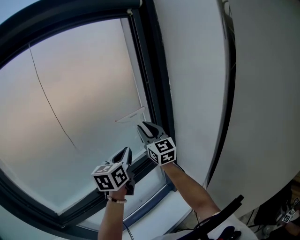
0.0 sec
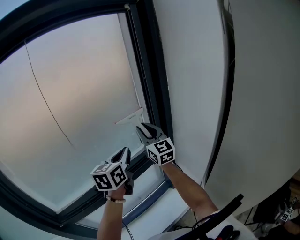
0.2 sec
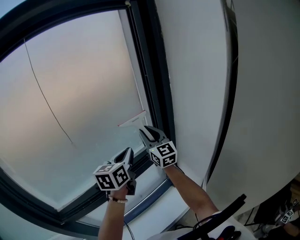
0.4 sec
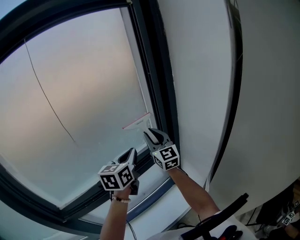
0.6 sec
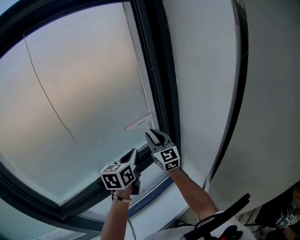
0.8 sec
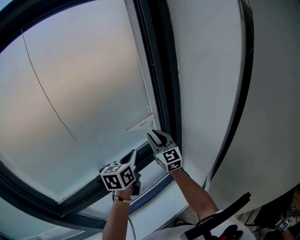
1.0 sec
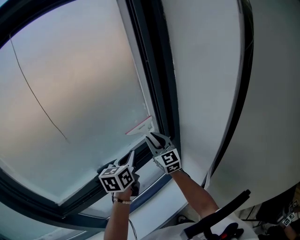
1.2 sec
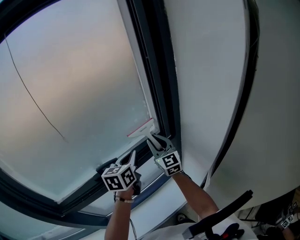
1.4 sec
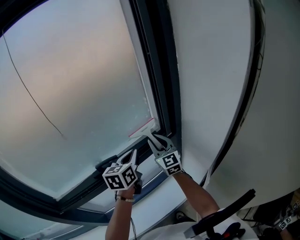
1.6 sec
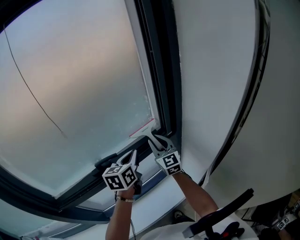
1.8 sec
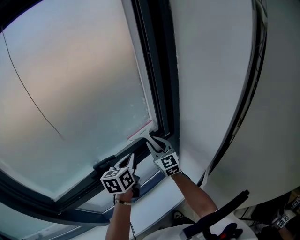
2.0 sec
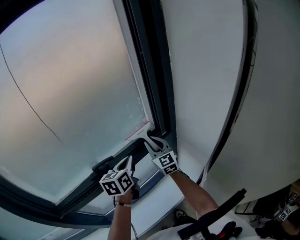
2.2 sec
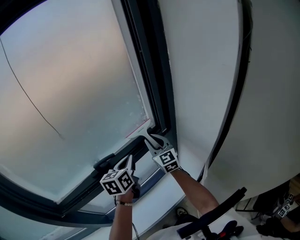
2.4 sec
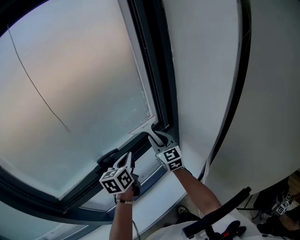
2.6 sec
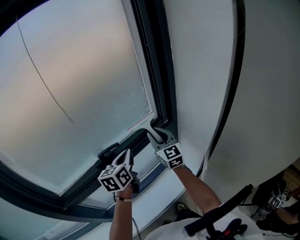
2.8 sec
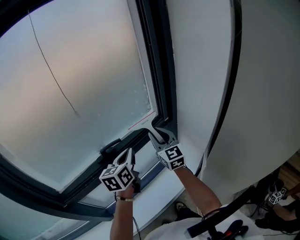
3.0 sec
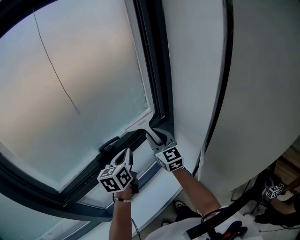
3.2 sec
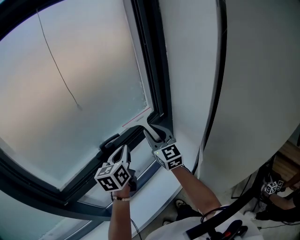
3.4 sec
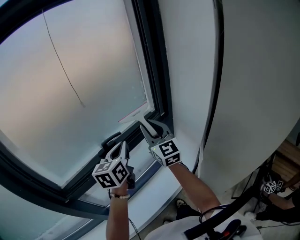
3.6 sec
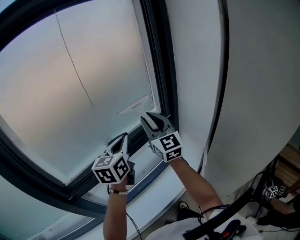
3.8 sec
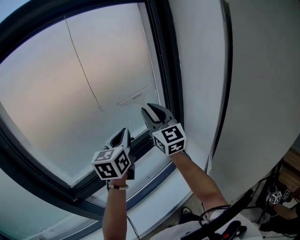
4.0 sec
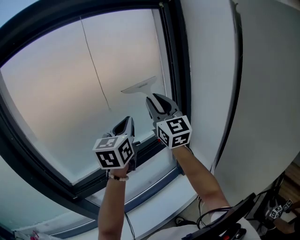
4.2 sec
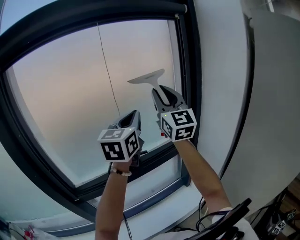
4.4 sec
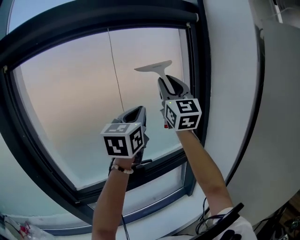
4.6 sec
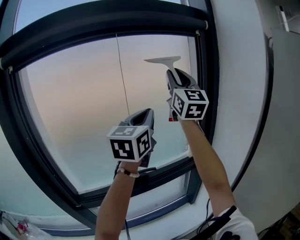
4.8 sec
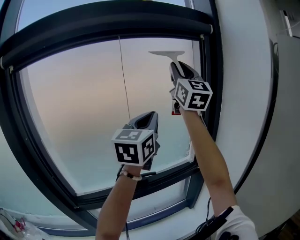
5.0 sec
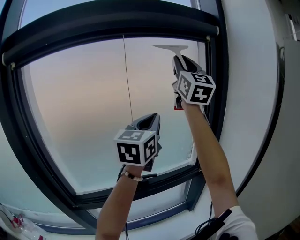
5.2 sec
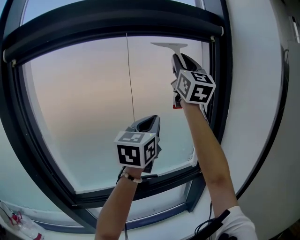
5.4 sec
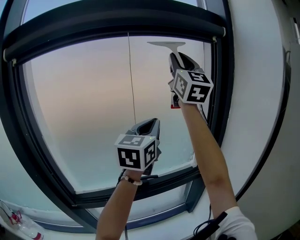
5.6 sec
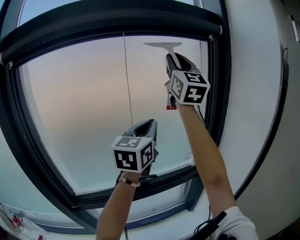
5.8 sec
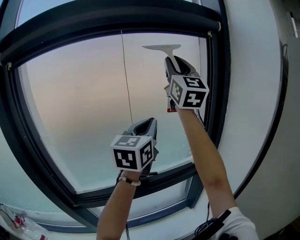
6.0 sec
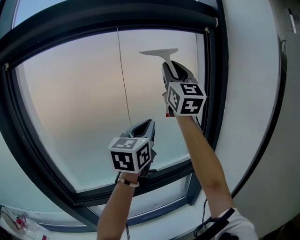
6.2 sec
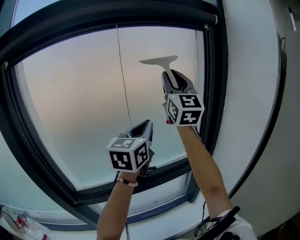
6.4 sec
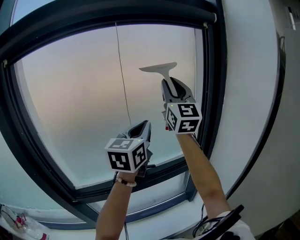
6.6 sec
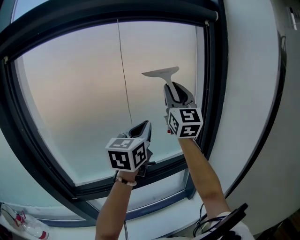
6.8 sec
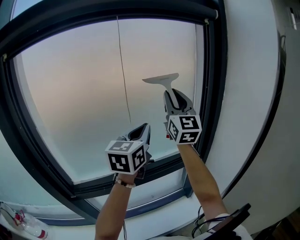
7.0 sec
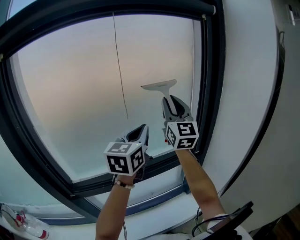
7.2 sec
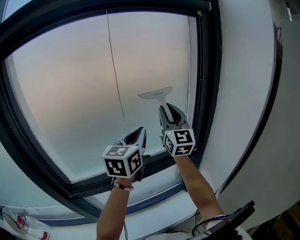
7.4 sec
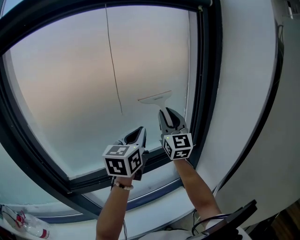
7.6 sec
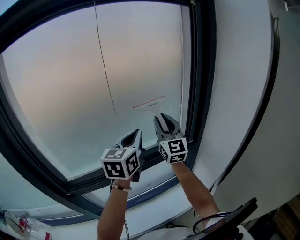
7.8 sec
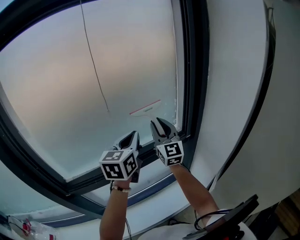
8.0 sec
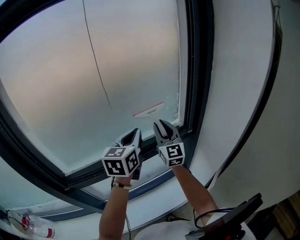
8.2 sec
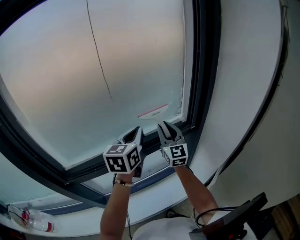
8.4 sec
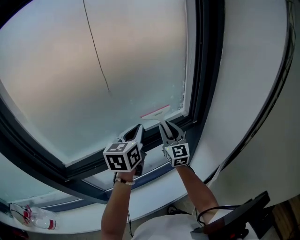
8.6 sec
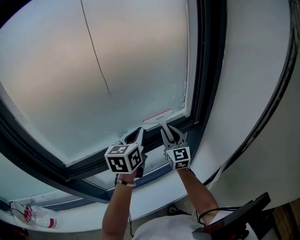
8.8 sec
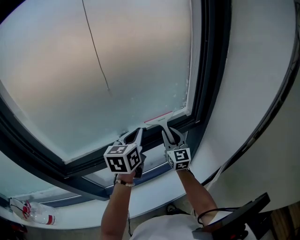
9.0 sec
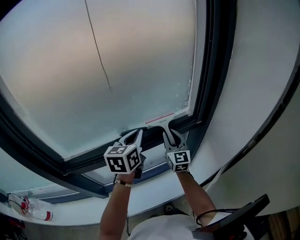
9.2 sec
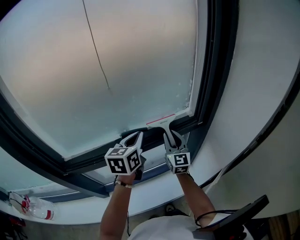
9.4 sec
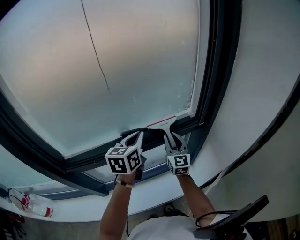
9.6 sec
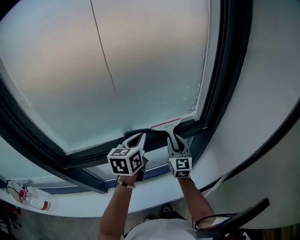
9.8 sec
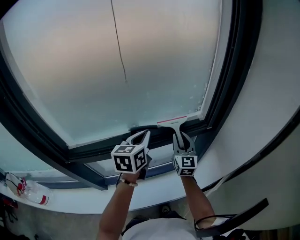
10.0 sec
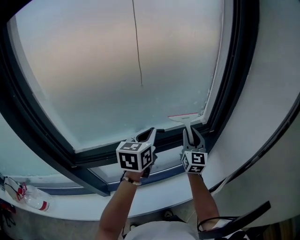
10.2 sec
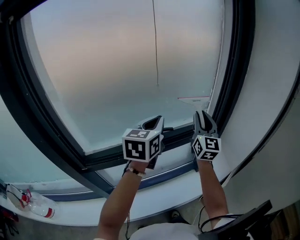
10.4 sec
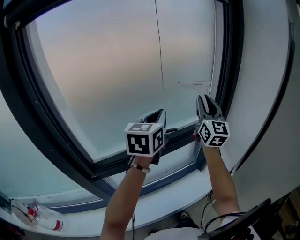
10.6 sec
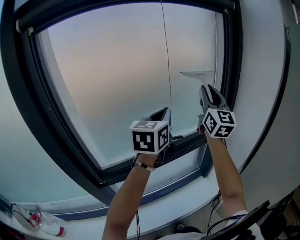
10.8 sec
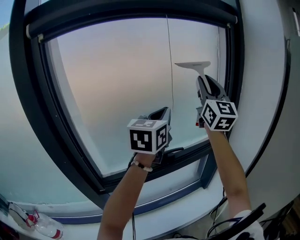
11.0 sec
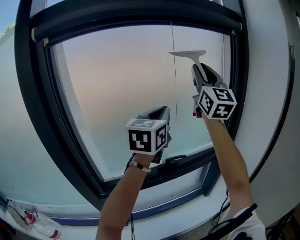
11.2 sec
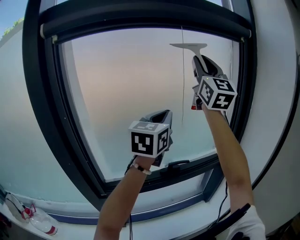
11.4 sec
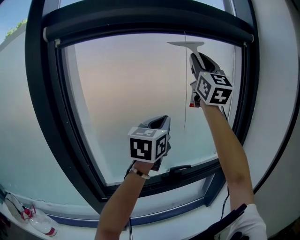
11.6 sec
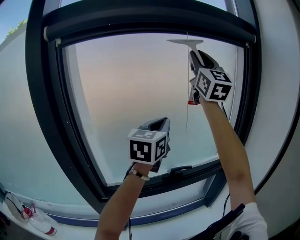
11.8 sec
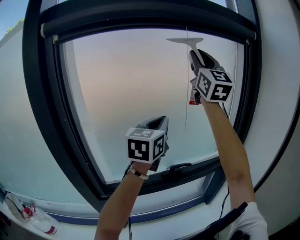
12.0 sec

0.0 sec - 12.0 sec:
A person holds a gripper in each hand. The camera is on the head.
0.0 sec - 1.6 sec: Both grippers travel together downward, some 15 cm.
1.6 sec - 3.0 sec: The left gripper travels backward and to the left by some 10 cm, while the right gripper heads backward, covering about 10 cm.
3.0 sec - 4.4 sec: Both grippers move upward, about 30 cm. The right gripper rotates roughly 20 degrees. The left gripper changes its angle by some 30 degrees.
4.4 sec - 6.0 sec: The right gripper heads upward and forward, covering roughly 20 cm. The left gripper shifts roughly 5 cm forward.
6.0 sec - 7.6 sec: The left gripper shifts about 15 cm downward. The right gripper shifts about 30 cm downward.
7.6 sec - 9.0 sec: The right gripper travels downward by some 25 cm. Meanwhile the left gripper is displaced downward by some 15 cm.
9.0 sec - 10.4 sec: The left gripper moves upward, some 10 cm; the right gripper travels upward by roughly 15 cm.
10.4 sec - 12.0 sec: The left gripper heads upward and to the left, covering some 20 cm, while the right gripper moves upward, some 40 cm, and changes its angle by approximately 30 degrees.

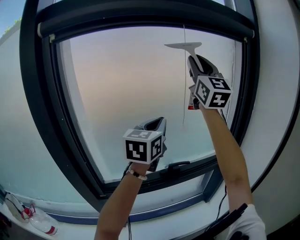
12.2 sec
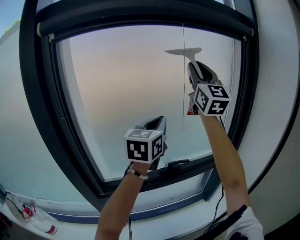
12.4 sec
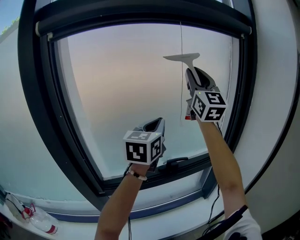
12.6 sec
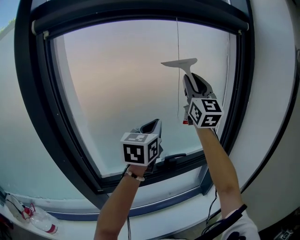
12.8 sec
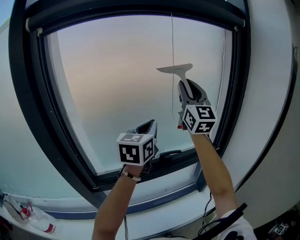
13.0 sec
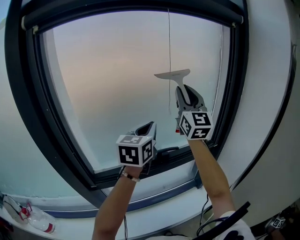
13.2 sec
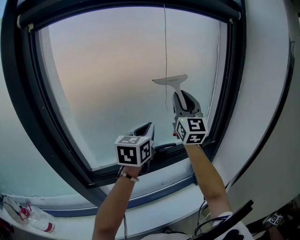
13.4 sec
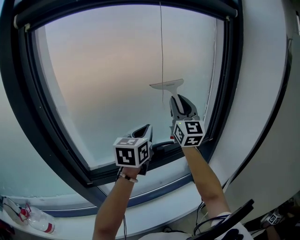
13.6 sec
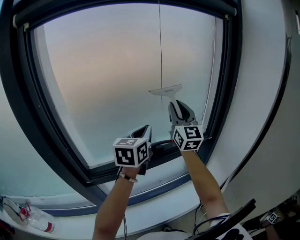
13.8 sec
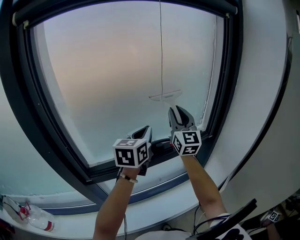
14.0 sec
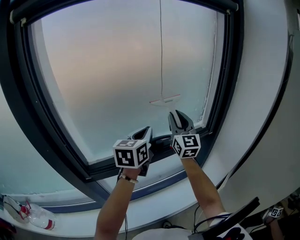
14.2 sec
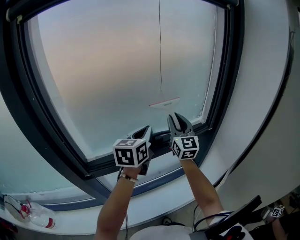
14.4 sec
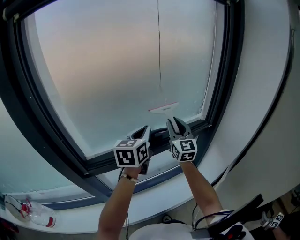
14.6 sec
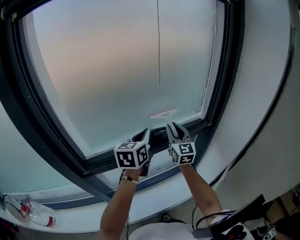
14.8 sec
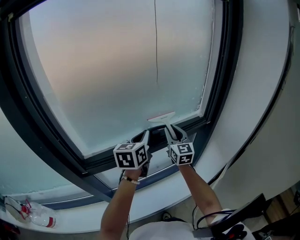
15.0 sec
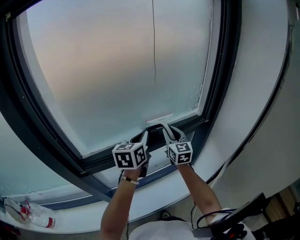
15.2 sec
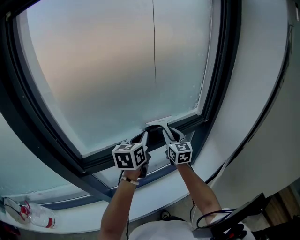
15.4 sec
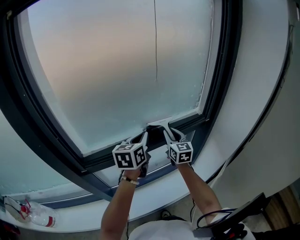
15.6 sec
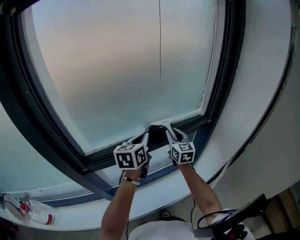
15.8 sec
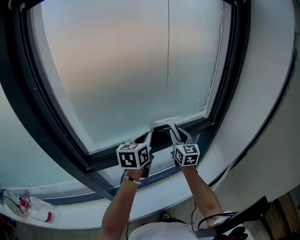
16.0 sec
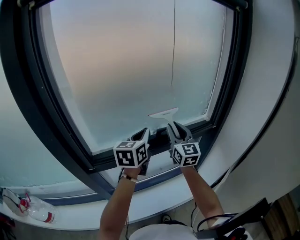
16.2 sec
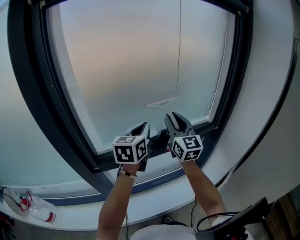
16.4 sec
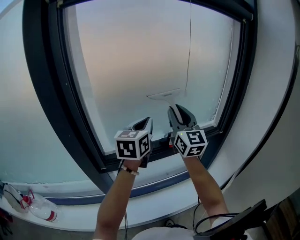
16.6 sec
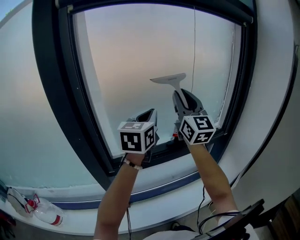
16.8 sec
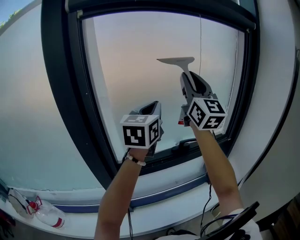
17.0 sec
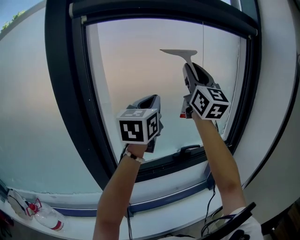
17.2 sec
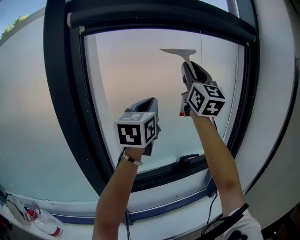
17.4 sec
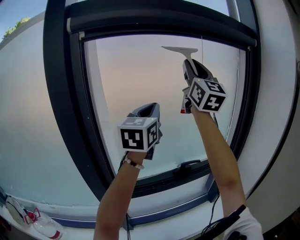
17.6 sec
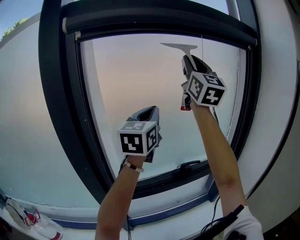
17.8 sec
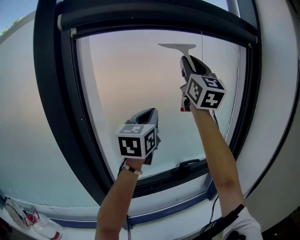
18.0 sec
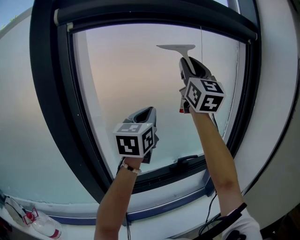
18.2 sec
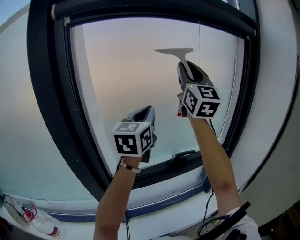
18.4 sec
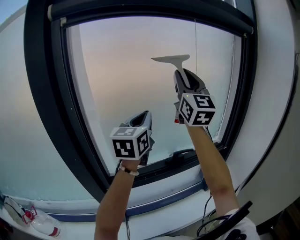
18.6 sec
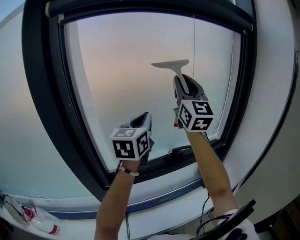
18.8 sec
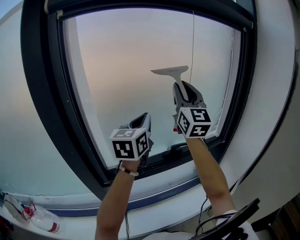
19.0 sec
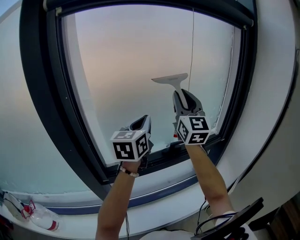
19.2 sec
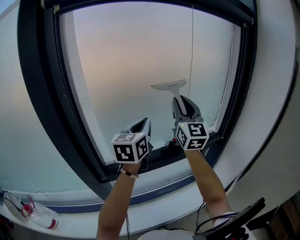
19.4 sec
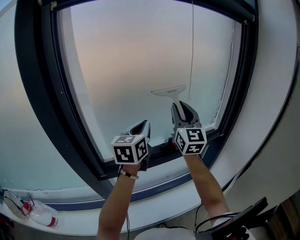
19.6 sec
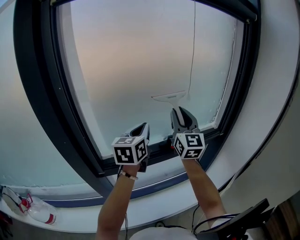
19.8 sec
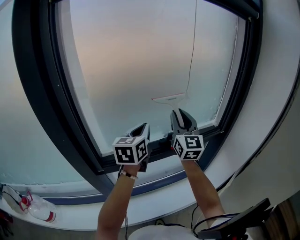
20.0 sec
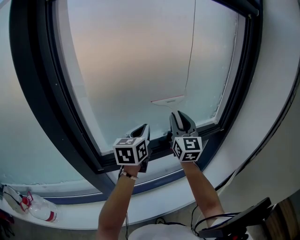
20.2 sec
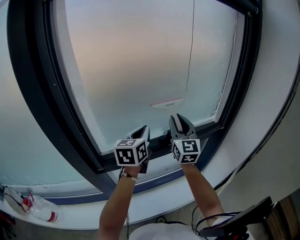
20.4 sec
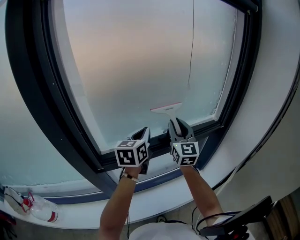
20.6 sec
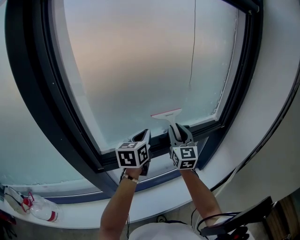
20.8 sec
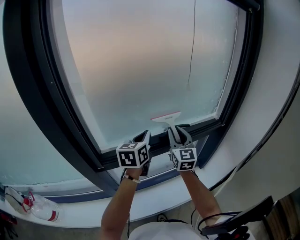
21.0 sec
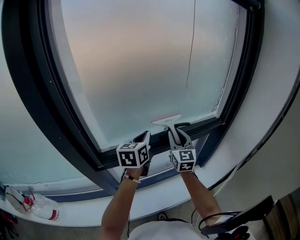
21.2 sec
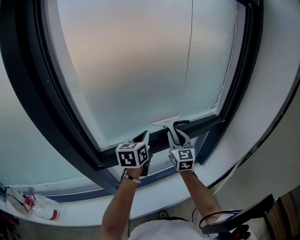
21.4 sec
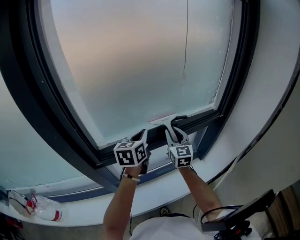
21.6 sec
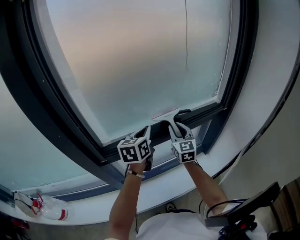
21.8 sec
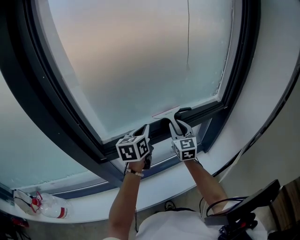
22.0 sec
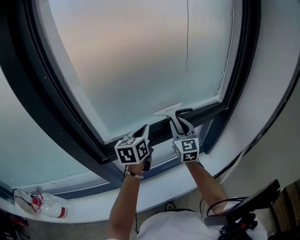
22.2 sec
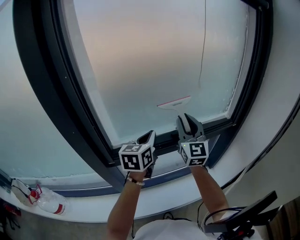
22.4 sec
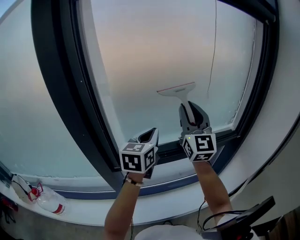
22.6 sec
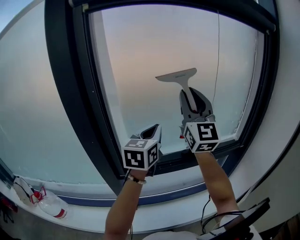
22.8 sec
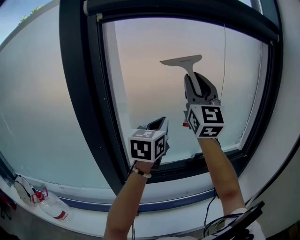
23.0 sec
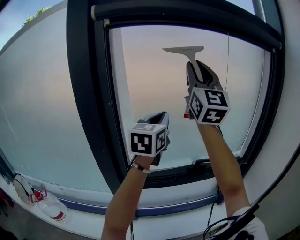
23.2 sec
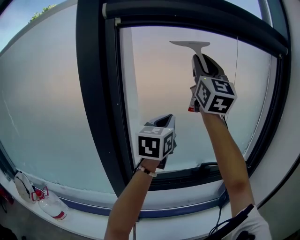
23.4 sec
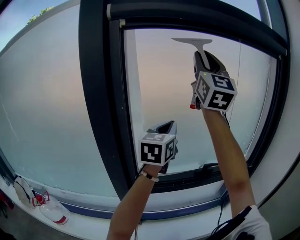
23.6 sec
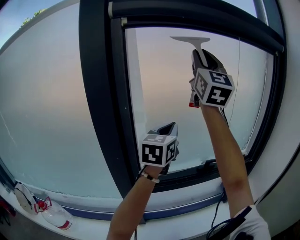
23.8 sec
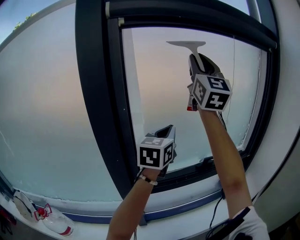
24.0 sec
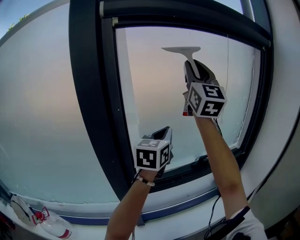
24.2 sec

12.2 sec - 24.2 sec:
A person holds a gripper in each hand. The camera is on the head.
12.2 sec - 13.8 sec: The left gripper shifts roughly 15 cm downward, while the right gripper shifts some 30 cm downward.
13.8 sec - 15.2 sec: The right gripper heads downward, covering roughly 25 cm, and changes its angle by roughly 30 degrees; the left gripper is displaced downward by roughly 10 cm.
15.2 sec - 16.6 sec: The left gripper is displaced upward and to the left by approximately 15 cm; the right gripper shifts some 25 cm upward and to the left, and turns by about 20 degrees.
16.6 sec - 18.2 sec: The left gripper travels upward by roughly 15 cm. Meanwhile the right gripper moves upward, about 30 cm.
18.2 sec - 19.8 sec: The left gripper moves downward, roughly 20 cm. Meanwhile the right gripper shifts some 30 cm downward.
19.8 sec - 21.2 sec: The left gripper heads downward, covering about 10 cm; the right gripper is displaced downward by roughly 20 cm.
21.2 sec - 22.6 sec: The left gripper heads upward, covering about 10 cm. Meanwhile the right gripper heads upward, covering some 20 cm, and rotates approximately 20 degrees.
22.6 sec - 24.2 sec: The right gripper shifts roughly 25 cm upward, while the left gripper is displaced upward and to the left by some 15 cm.
